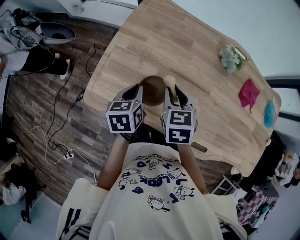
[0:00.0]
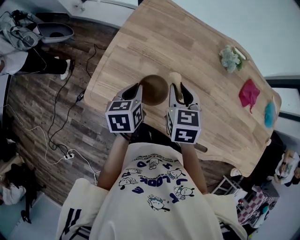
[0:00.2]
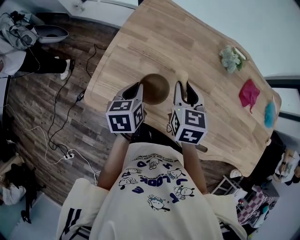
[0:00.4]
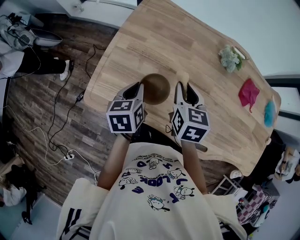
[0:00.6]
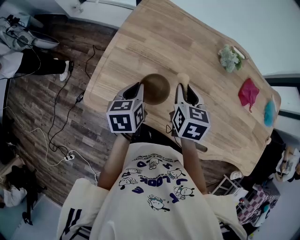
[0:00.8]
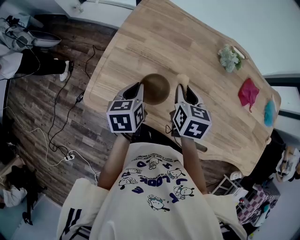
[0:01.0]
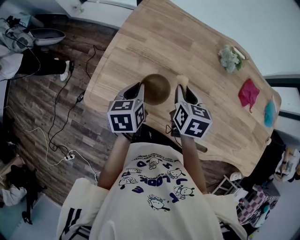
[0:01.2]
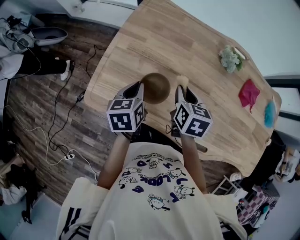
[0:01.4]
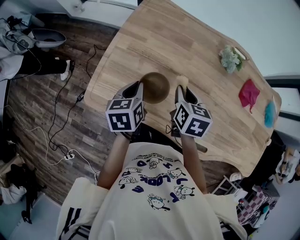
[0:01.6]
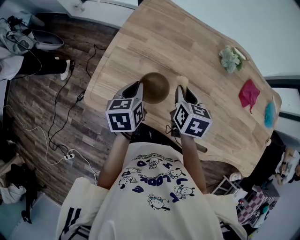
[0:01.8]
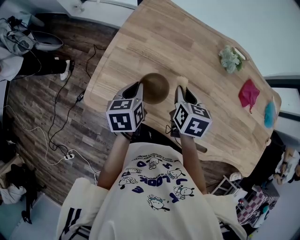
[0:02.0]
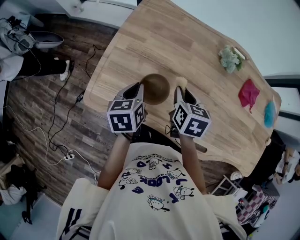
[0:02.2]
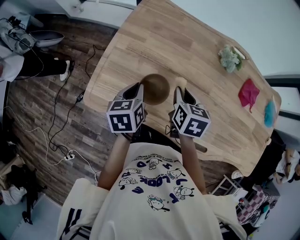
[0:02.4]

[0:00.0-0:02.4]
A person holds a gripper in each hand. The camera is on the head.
0:00.0 to 0:01.2: The right gripper goes roughly 5 cm to the right, and swivels roughly 20 degrees.
0:01.2 to 0:02.4: Both grippers stay put.

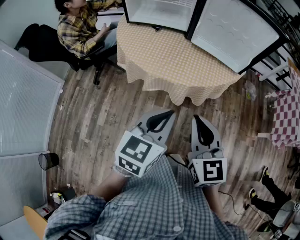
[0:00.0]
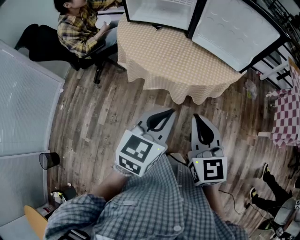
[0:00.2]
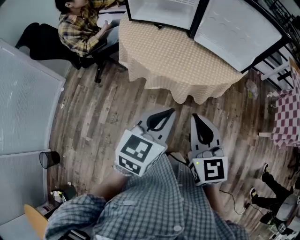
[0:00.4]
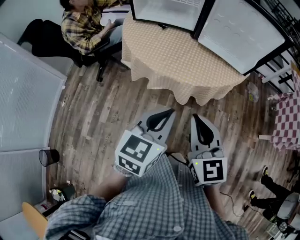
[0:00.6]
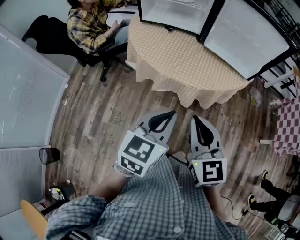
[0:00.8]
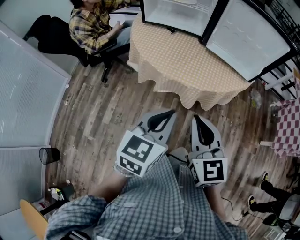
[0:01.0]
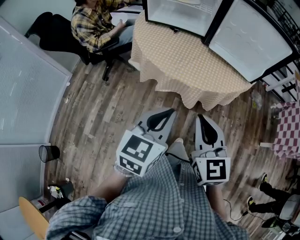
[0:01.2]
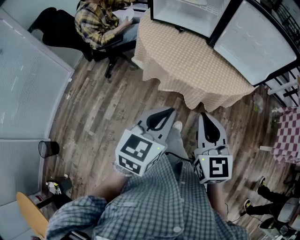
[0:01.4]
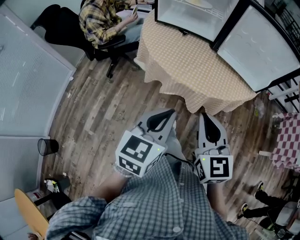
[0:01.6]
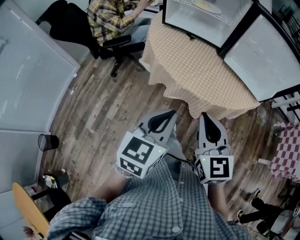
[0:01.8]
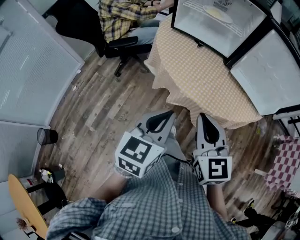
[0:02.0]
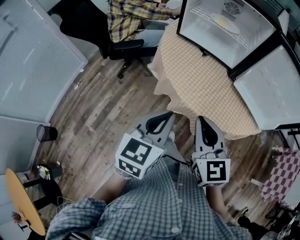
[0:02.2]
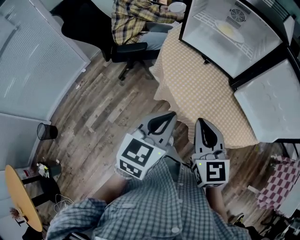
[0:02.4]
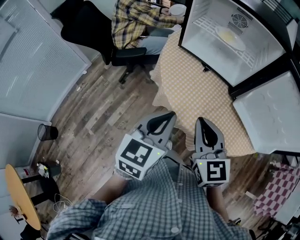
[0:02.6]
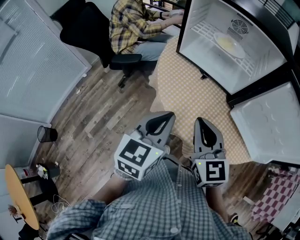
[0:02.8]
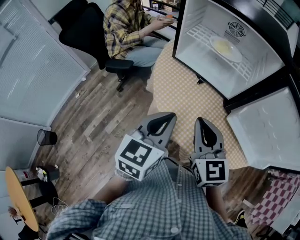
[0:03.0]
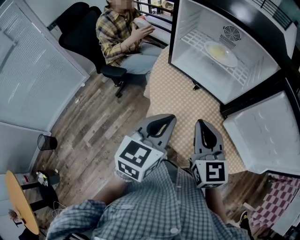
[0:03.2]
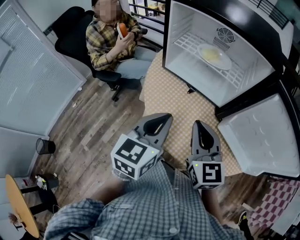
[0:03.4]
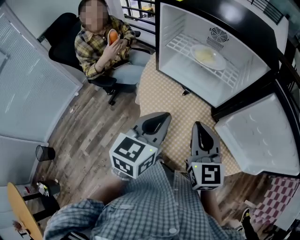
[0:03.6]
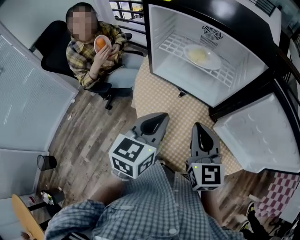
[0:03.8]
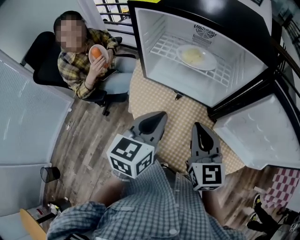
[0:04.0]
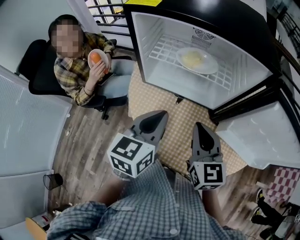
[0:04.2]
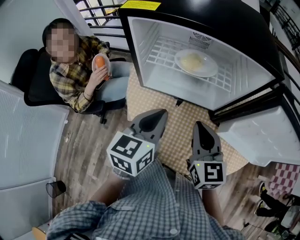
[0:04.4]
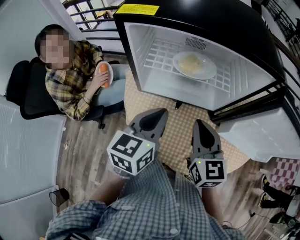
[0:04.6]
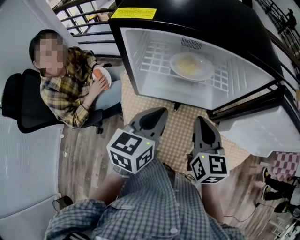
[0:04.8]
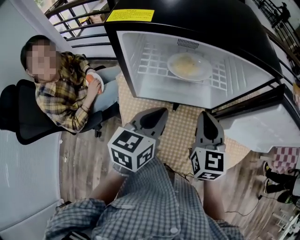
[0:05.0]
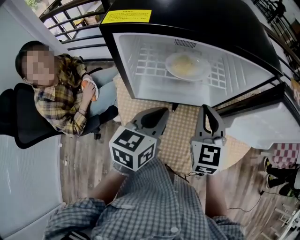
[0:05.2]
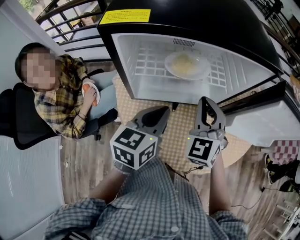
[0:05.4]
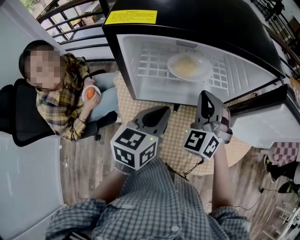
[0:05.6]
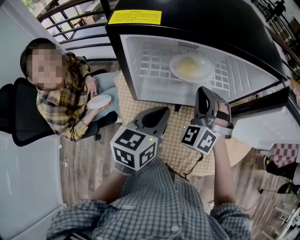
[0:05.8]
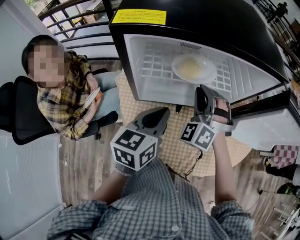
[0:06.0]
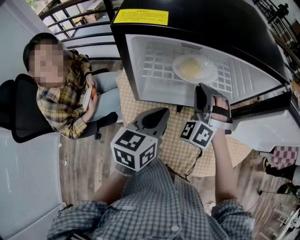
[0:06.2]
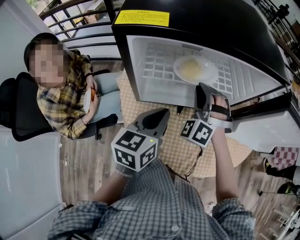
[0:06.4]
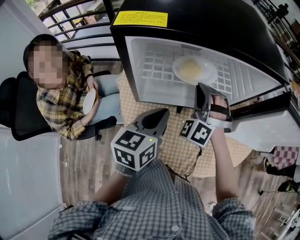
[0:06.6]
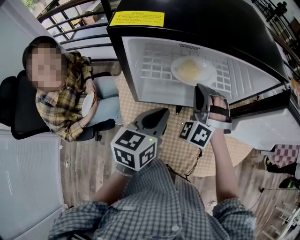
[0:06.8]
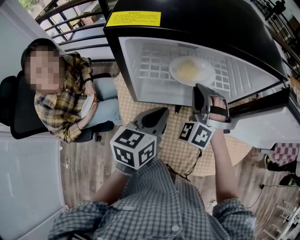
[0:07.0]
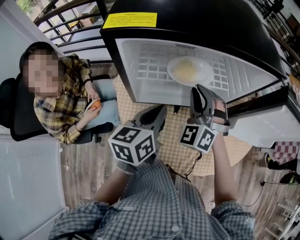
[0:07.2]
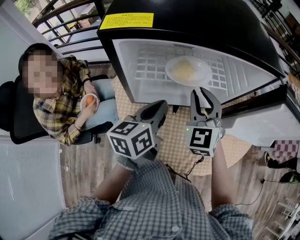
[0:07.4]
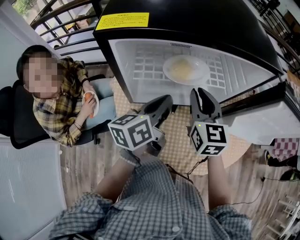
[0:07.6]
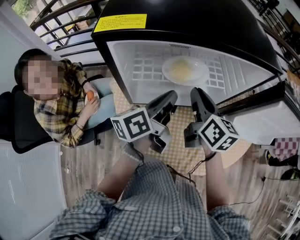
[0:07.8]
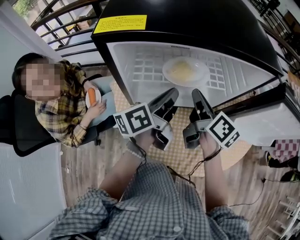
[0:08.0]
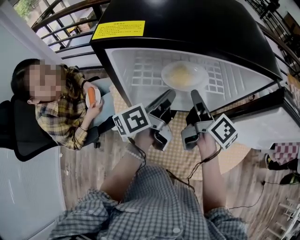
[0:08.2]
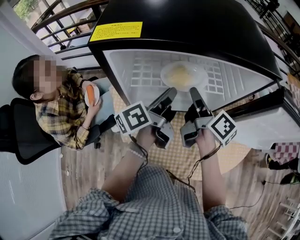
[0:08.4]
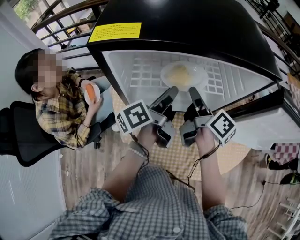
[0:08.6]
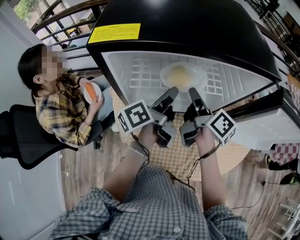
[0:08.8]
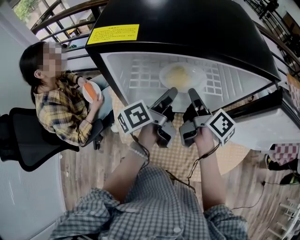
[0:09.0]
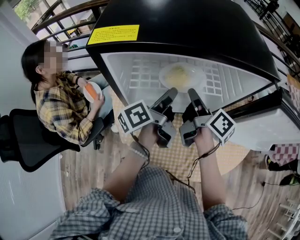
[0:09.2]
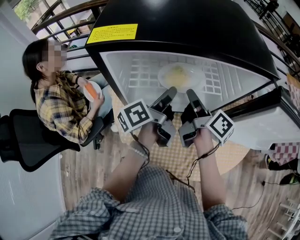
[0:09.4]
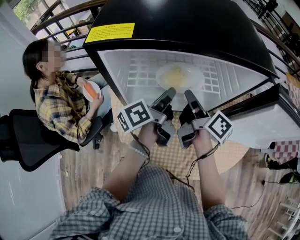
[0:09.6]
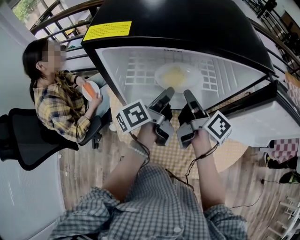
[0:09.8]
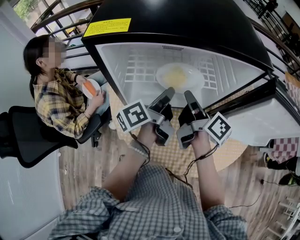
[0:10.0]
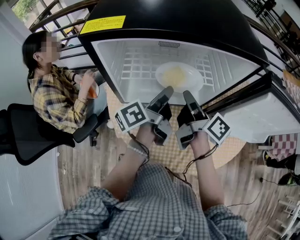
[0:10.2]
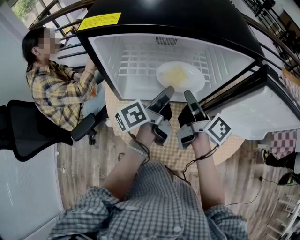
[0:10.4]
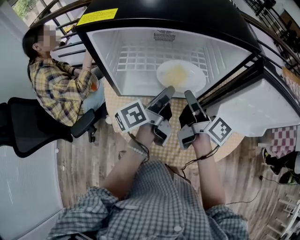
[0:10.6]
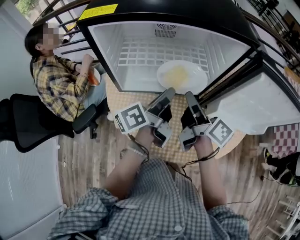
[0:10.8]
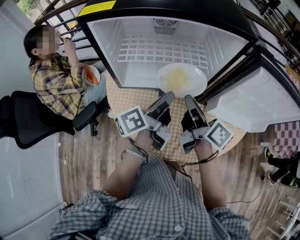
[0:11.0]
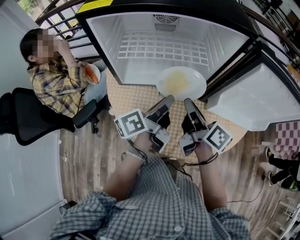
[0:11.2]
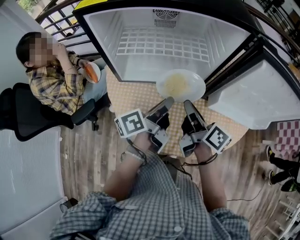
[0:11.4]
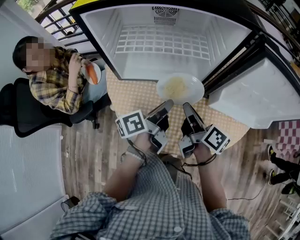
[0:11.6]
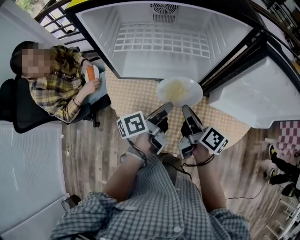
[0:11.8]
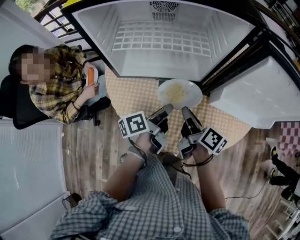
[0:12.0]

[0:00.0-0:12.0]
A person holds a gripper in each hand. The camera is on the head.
0:00.0 to 0:01.6: Both grippers move to the left, approximately 10 cm.
0:01.6 to 0:03.0: Both grippers move forward, approximately 30 cm.
0:03.0 to 0:04.4: Both grippers move forward, roughly 15 cm. The right gripper turns by roughly 20 degrees.
0:04.4 to 0:06.0: The left gripper shifts roughly 5 cm forward; the right gripper goes about 15 cm forward and to the left, and rolls counterclockwise, seen from behind, by approximately 60 degrees.
0:06.0 to 0:07.6: The right gripper rolls clockwise, seen from behind, by roughly 70 degrees. The left gripper changes place by about 5 cm, and changes its angle by about 20 degrees.
0:07.6 to 0:09.0: The right gripper shifts by roughly 5 cm, and rotates around the line of its fingers by approximately 70 degrees, clockwise from behind. The left gripper shifts approximately 5 cm forward, rotates approximately 30 degrees, and opens up.
0:09.0 to 0:10.4: The right gripper moves backward, some 5 cm. Meanwhile the left gripper shifts by about 5 cm.
0:10.4 to 0:12.0: The two grippers go some 15 cm downward and backward.

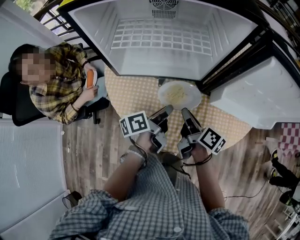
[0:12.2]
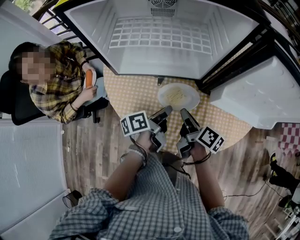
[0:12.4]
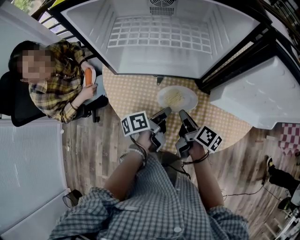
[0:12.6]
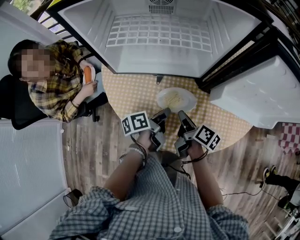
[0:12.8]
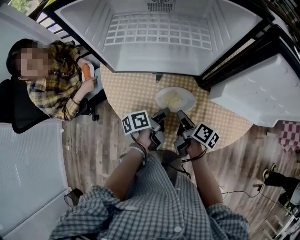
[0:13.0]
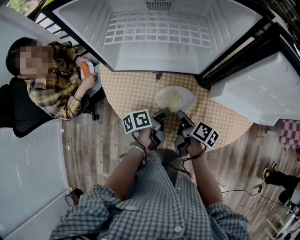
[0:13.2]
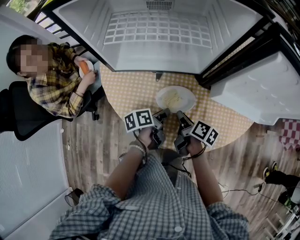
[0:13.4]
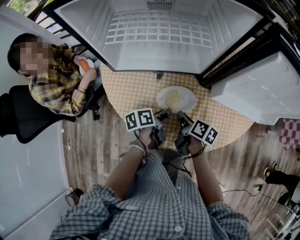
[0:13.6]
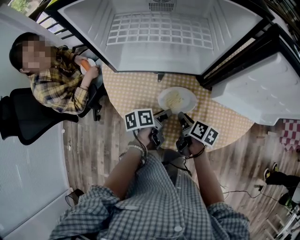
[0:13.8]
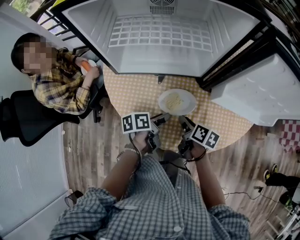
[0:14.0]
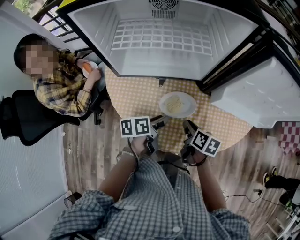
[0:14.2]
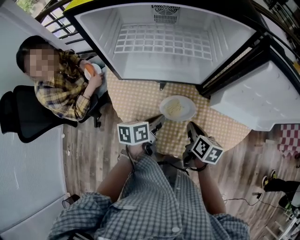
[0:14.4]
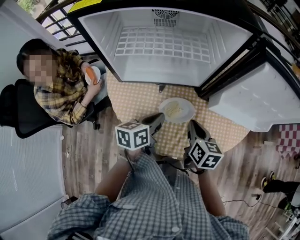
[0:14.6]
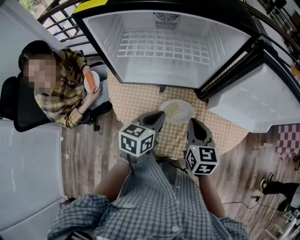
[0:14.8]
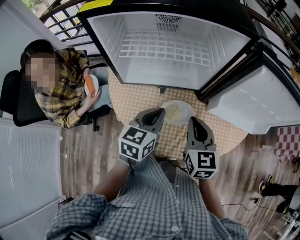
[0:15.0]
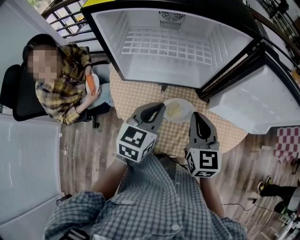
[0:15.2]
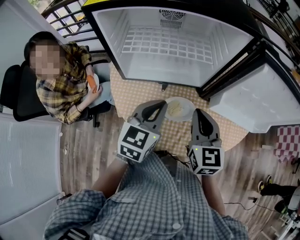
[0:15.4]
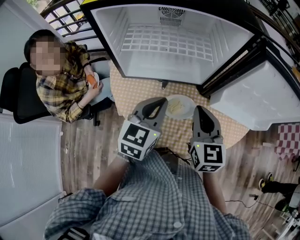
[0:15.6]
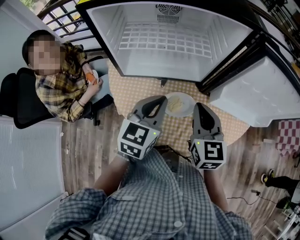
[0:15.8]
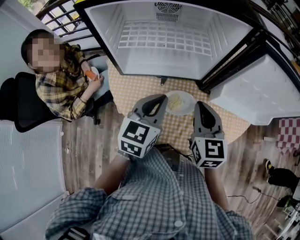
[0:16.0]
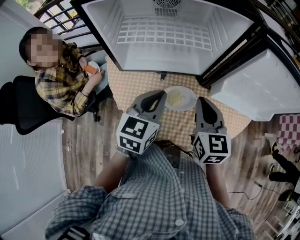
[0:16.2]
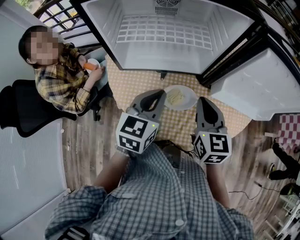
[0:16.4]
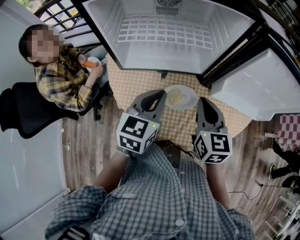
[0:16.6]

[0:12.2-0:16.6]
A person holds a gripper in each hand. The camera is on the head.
0:12.2 to 0:13.6: Both grippers travel together downward, approximately 10 cm. The left gripper changes its angle by some 20 degrees.
0:13.6 to 0:15.2: The grippers both shift upward by roughly 20 cm. The right gripper twists about 60 degrees counterclockwise, seen from behind. Meanwhile the left gripper rolls clockwise, seen from behind, by about 60 degrees, and closes.
0:15.2 to 0:16.6: The grippers stay close to where they were, moving slightly.

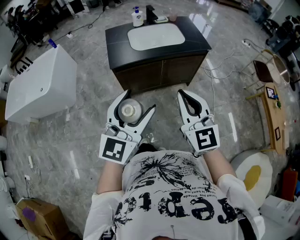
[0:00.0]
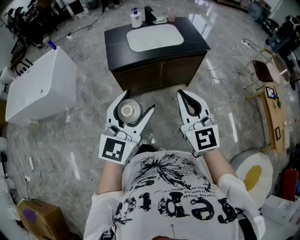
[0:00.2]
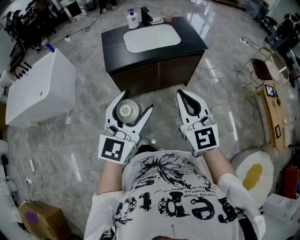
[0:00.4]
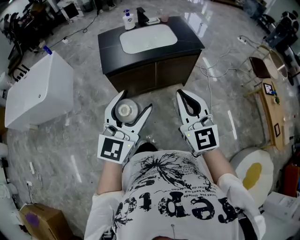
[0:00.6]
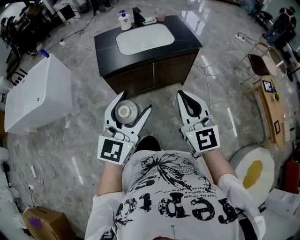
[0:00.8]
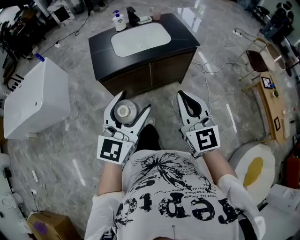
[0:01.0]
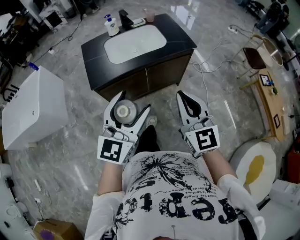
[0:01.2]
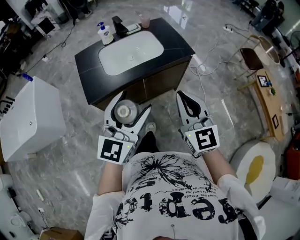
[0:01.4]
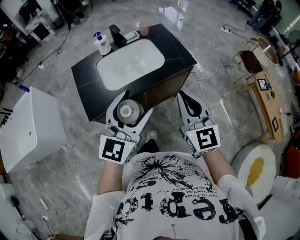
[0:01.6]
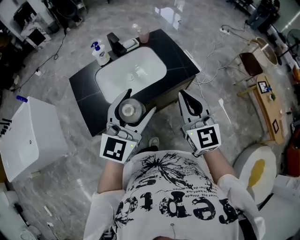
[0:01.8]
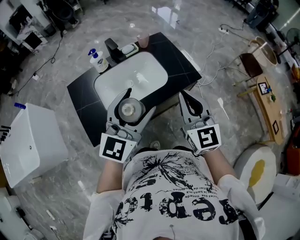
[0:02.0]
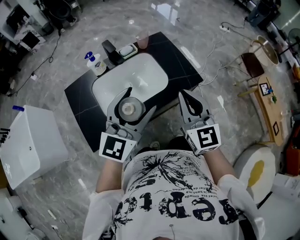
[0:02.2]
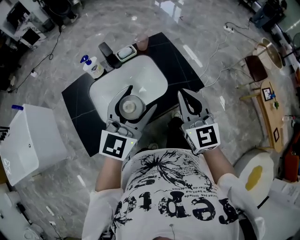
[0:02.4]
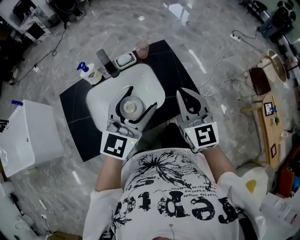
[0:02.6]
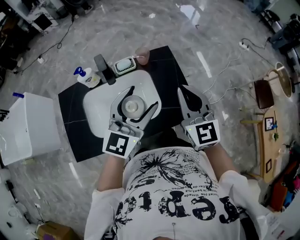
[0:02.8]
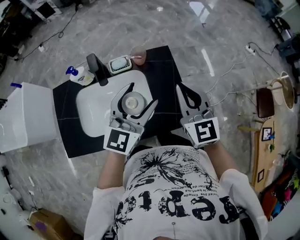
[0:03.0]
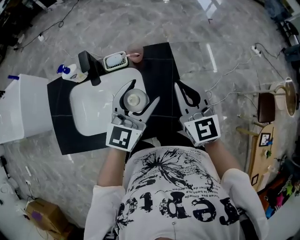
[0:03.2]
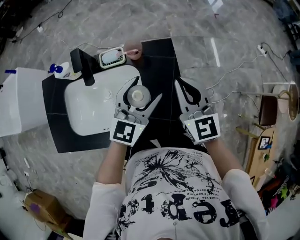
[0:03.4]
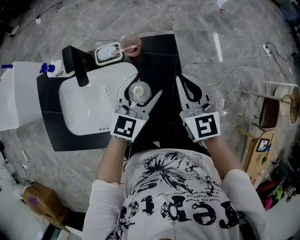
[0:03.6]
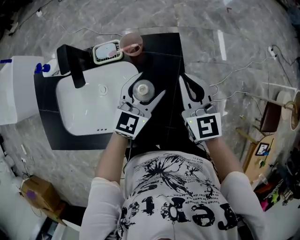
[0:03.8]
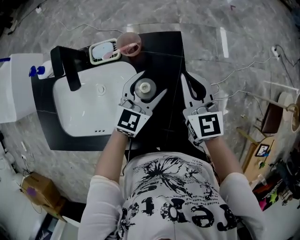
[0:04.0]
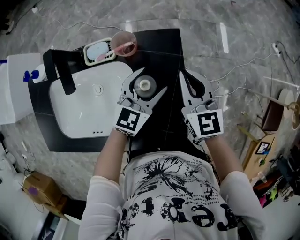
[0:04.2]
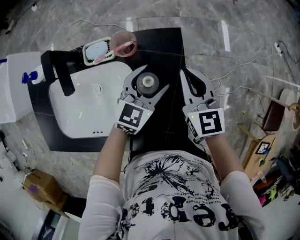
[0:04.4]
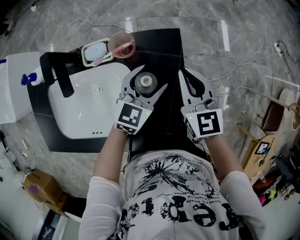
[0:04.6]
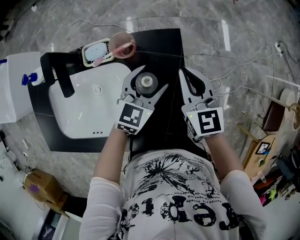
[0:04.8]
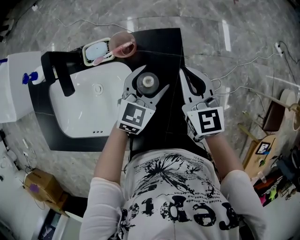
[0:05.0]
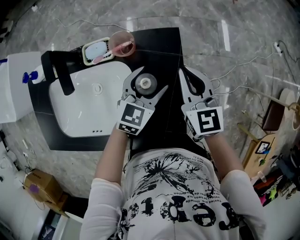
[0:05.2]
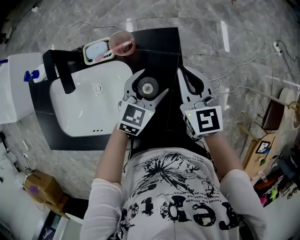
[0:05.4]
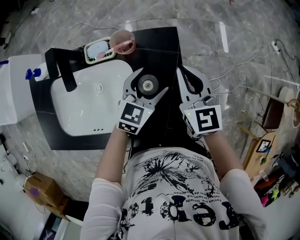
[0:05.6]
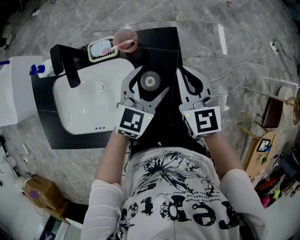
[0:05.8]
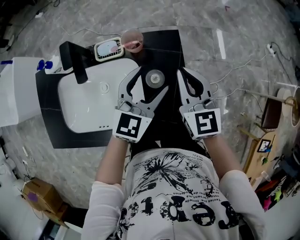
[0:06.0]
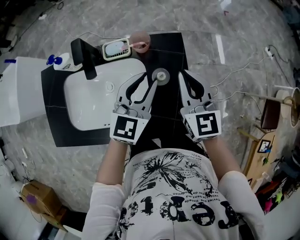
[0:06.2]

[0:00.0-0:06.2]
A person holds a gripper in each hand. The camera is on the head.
0:00.0 to 0:01.6: The grippers both shift forward by approximately 35 cm.
0:01.6 to 0:03.2: The two grippers travel together, forward, about 60 cm. The right gripper changes its angle by roughly 20 degrees.
0:03.2 to 0:04.6: Both grippers move downward and forward, about 30 cm. The left gripper changes its angle by about 30 degrees.
0:04.6 to 0:06.2: The left gripper goes about 20 cm upward, backward and to the left, and closes its fingers; the right gripper is displaced upward and backward by some 15 cm.
